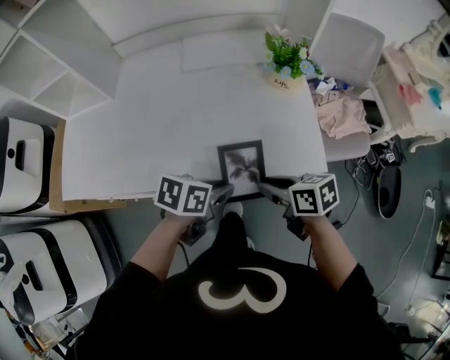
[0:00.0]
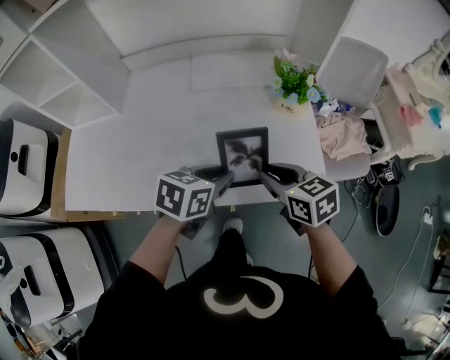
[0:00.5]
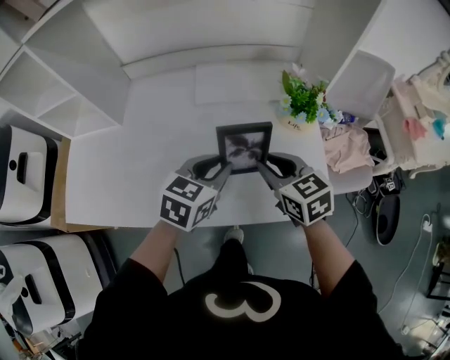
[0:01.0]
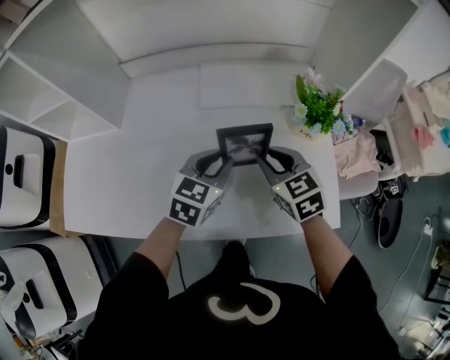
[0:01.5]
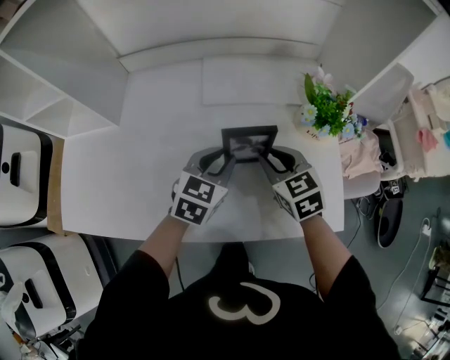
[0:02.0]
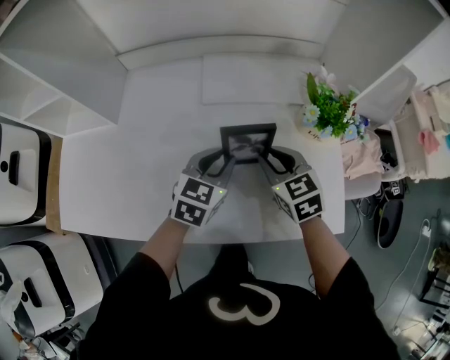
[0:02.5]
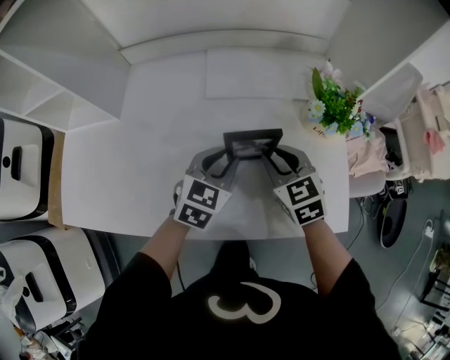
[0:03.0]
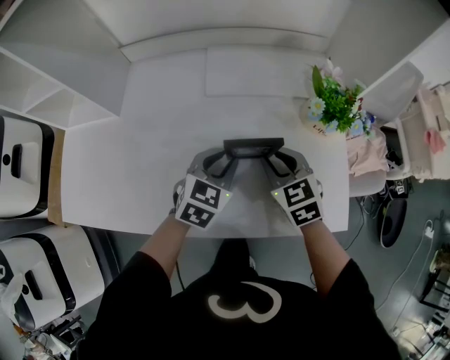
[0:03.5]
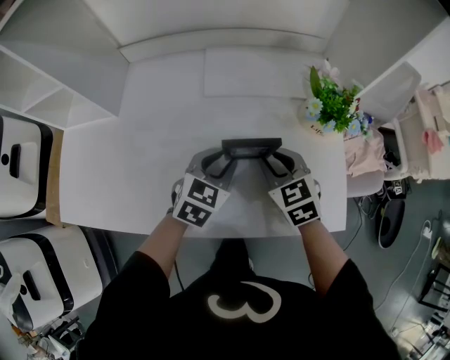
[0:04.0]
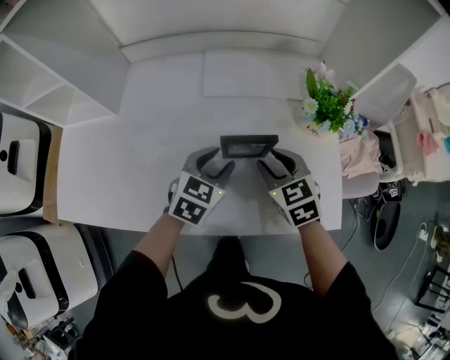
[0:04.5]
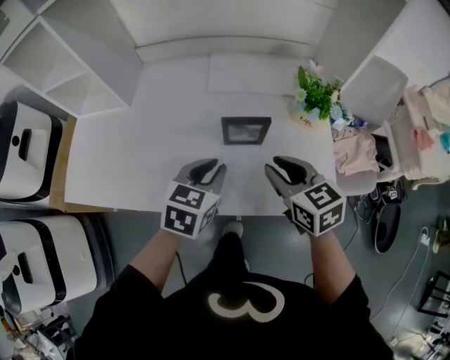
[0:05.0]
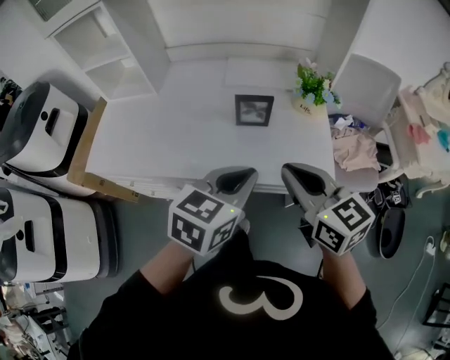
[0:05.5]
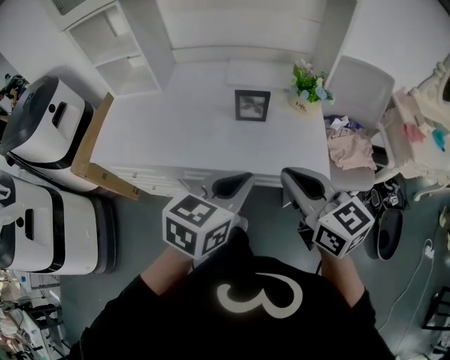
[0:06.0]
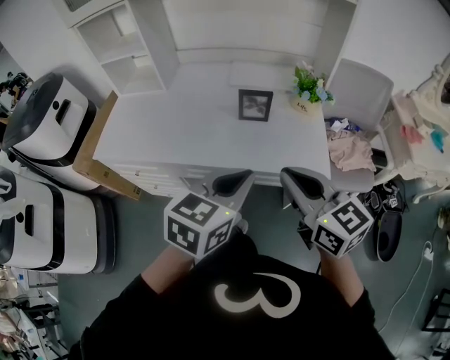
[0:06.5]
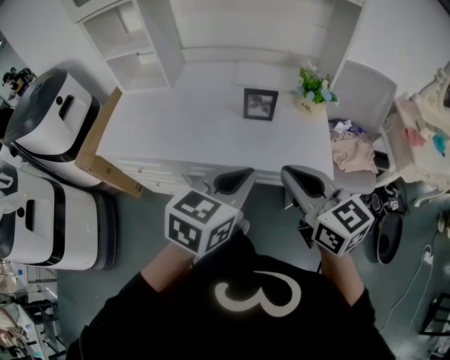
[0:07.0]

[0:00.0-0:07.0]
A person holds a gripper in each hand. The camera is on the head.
0:00.0 to 0:02.0: The left gripper reaches roughly 10 cm upward, then returns, and rotates about 50 degrees; the right gripper travels upward and back again, about 10 cm each way, and changes its angle by approximately 40 degrees.
0:02.0 to 0:03.5: The grippers make only small movements.
0:03.5 to 0:05.0: The two grippers go approximately 10 cm backward and upward.
0:05.0 to 0:07.0: The grippers both shift backward and upward by roughly 30 cm. The right gripper changes its angle by about 20 degrees, and closes its fingers.

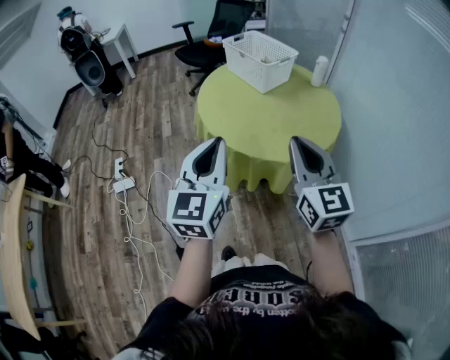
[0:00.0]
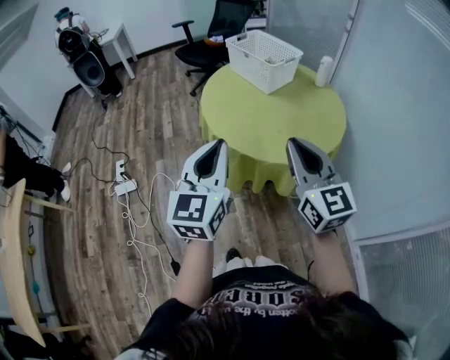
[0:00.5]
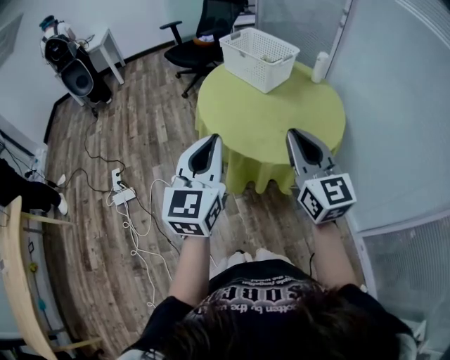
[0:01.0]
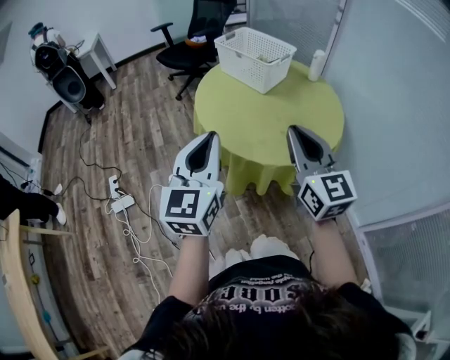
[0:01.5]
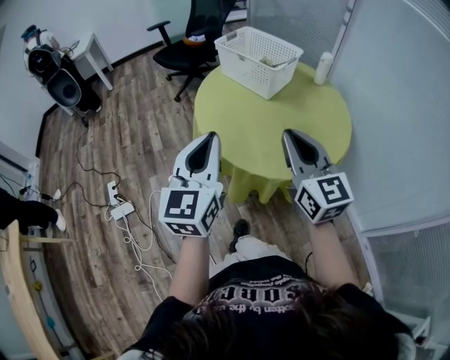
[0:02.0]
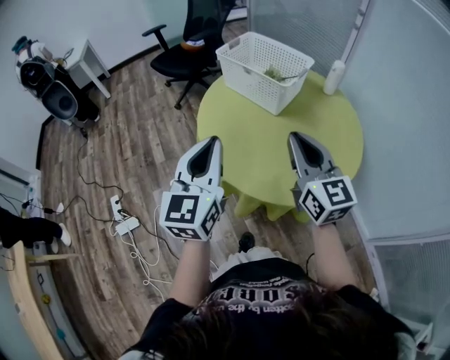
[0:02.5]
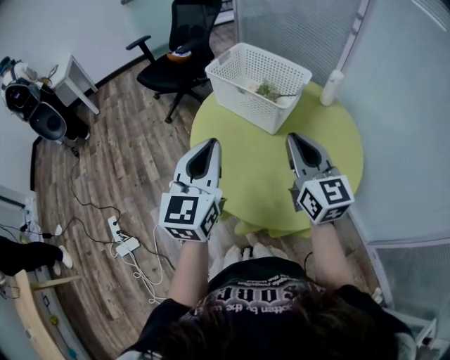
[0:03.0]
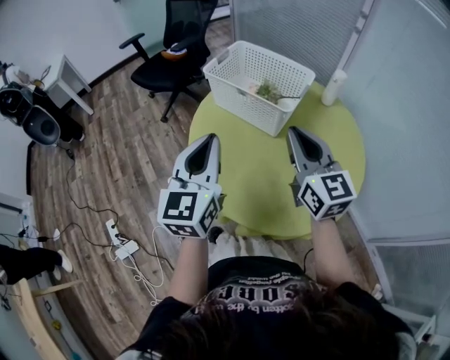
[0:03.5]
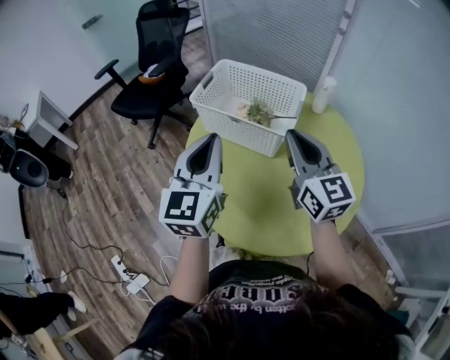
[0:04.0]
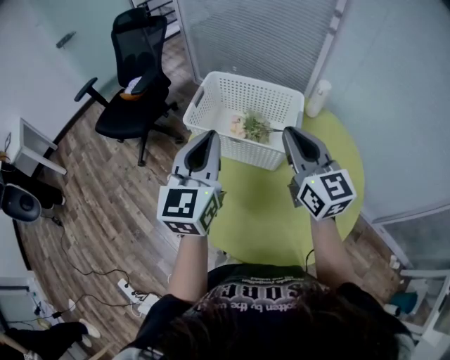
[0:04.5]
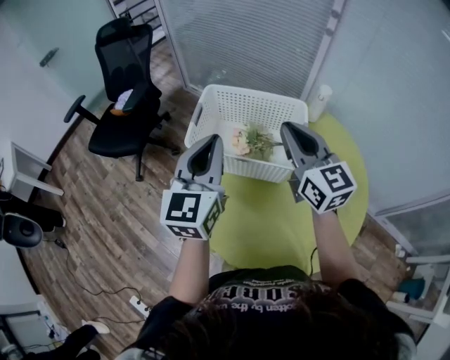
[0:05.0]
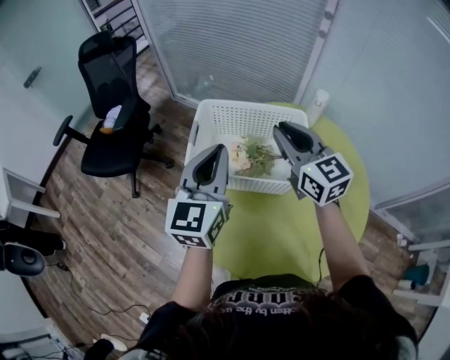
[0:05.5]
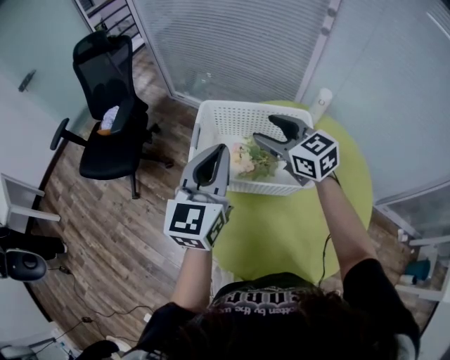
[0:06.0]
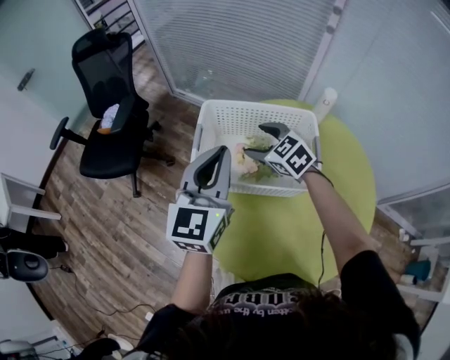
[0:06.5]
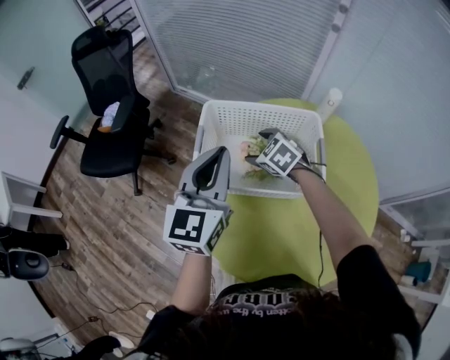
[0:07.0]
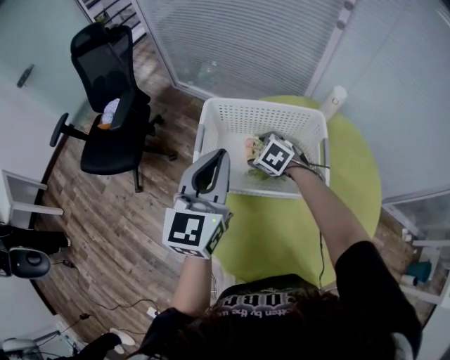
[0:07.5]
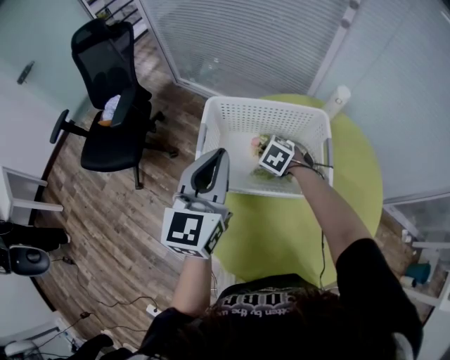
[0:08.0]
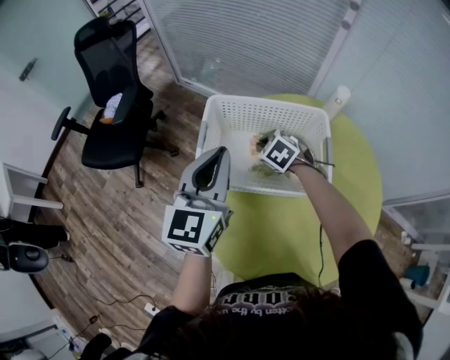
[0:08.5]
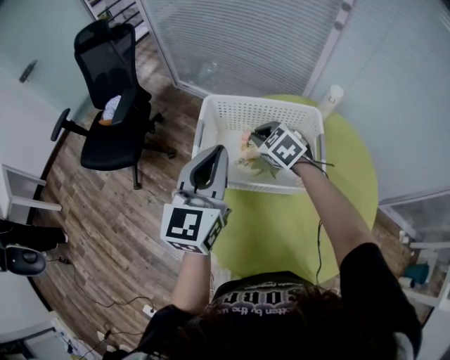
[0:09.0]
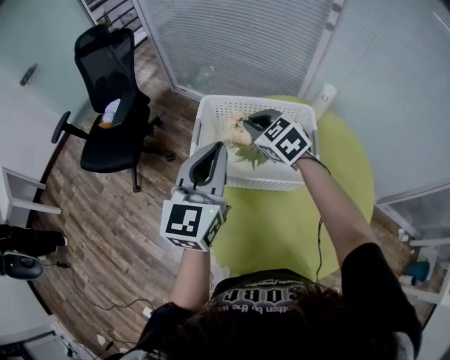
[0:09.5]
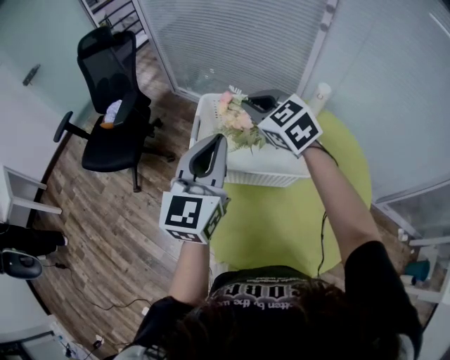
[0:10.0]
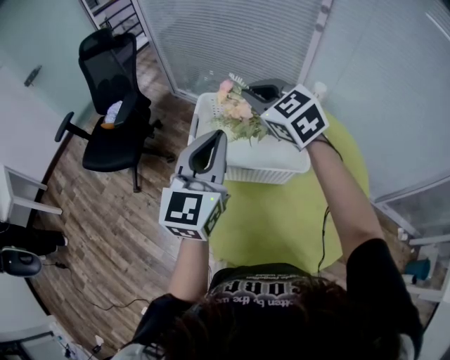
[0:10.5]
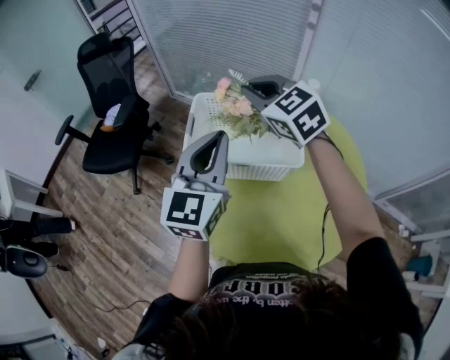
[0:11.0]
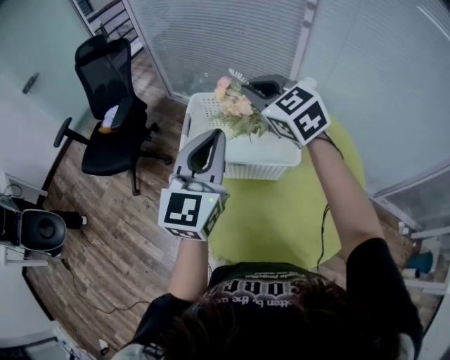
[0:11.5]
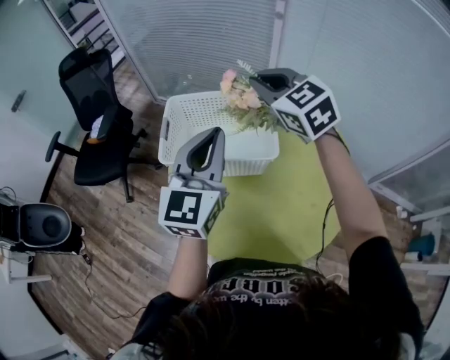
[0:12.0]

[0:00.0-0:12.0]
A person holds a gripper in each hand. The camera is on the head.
0:00.0 to 0:02.0: Both grippers travel together forward and to the left, some 15 cm.
0:02.0 to 0:04.0: Both grippers travel together forward, approximately 30 cm.
0:04.0 to 0:06.0: Both grippers move forward, about 20 cm. The right gripper opens up; the left gripper changes its angle by some 20 degrees.
0:06.0 to 0:08.0: The right gripper is displaced downward by some 25 cm, tips its fingers downward by approximately 50 degrees, and closes up.
0:08.0 to 0:10.0: The right gripper moves upward, roughly 30 cm, and angles its fingers upward, by roughly 40 degrees; the left gripper shifts by about 5 cm.
0:10.0 to 0:12.0: The left gripper is displaced to the right by some 10 cm. The right gripper moves to the right, upward and backward, about 15 cm.

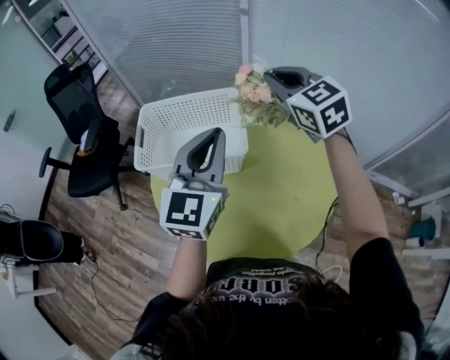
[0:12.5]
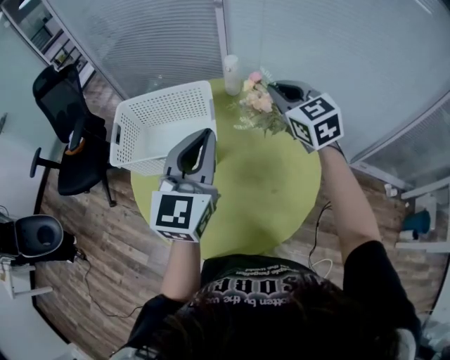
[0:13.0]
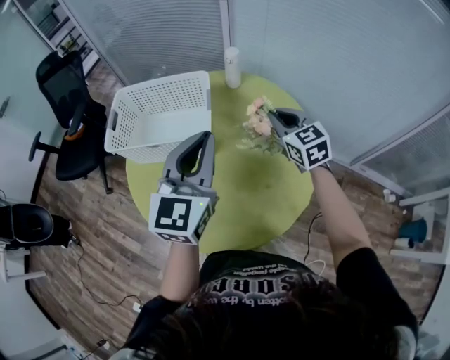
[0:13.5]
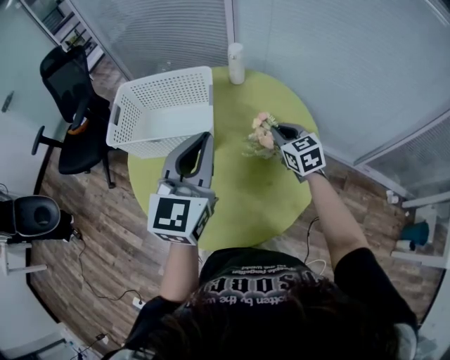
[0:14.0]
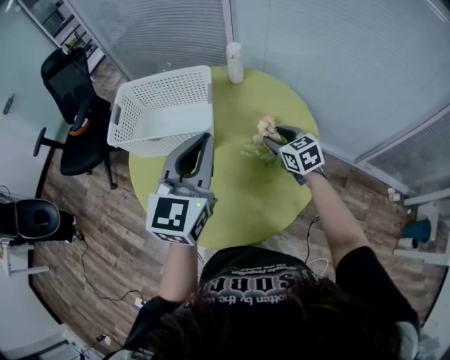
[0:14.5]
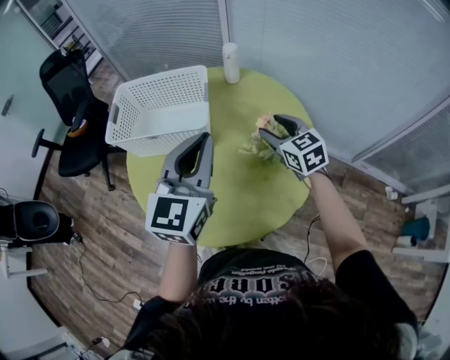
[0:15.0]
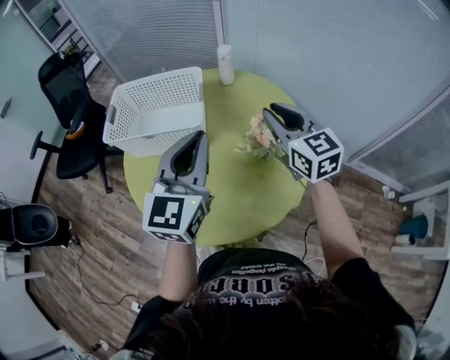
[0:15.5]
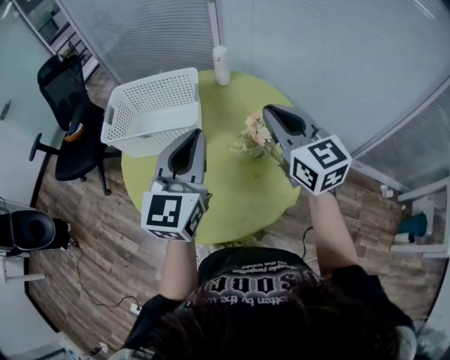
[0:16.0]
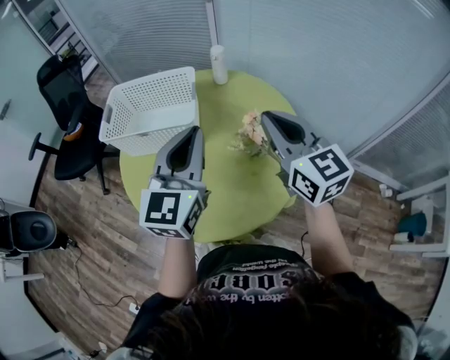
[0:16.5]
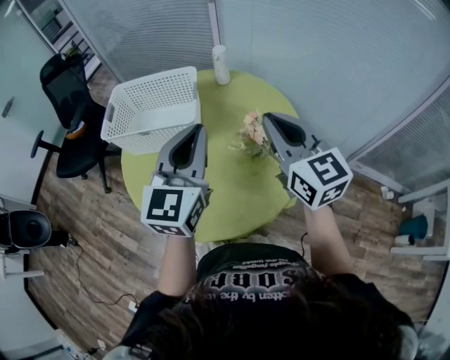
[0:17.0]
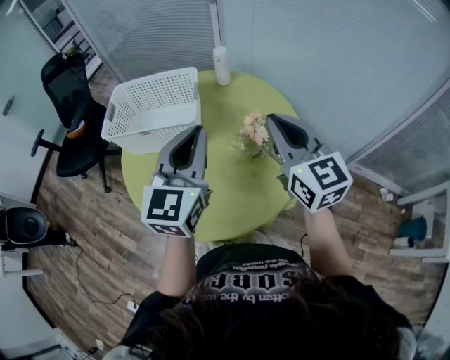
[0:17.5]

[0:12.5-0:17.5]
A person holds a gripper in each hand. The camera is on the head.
0:12.5 to 0:15.0: The left gripper moves backward and to the right, about 10 cm; the right gripper heads downward, backward and to the right, covering roughly 25 cm, and opens its fingers.
0:15.0 to 0:17.5: The right gripper heads upward and backward, covering roughly 20 cm, turns by approximately 20 degrees, and closes up.

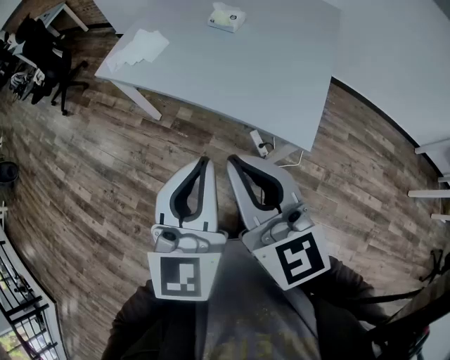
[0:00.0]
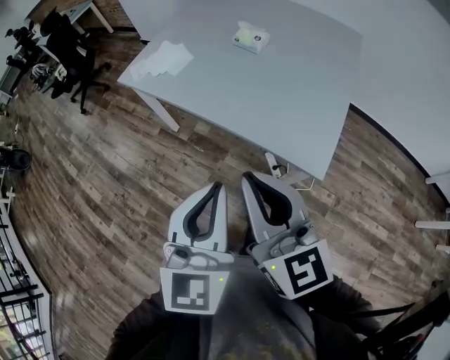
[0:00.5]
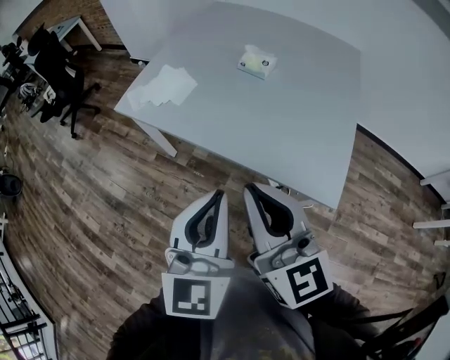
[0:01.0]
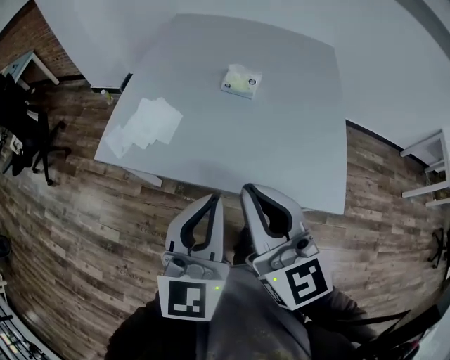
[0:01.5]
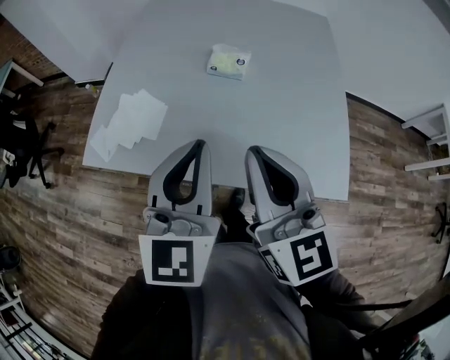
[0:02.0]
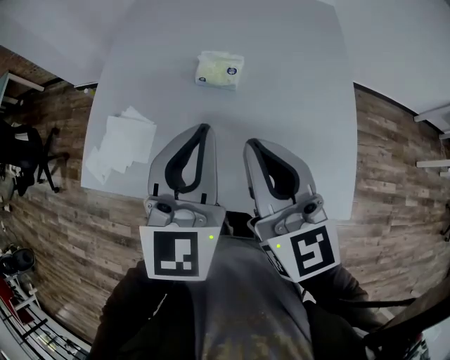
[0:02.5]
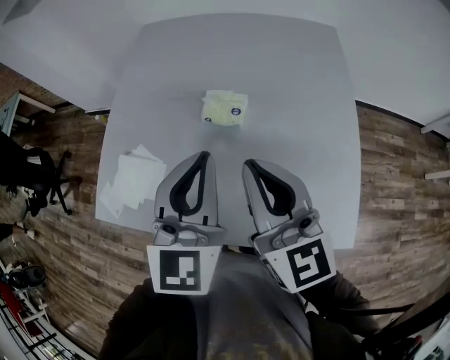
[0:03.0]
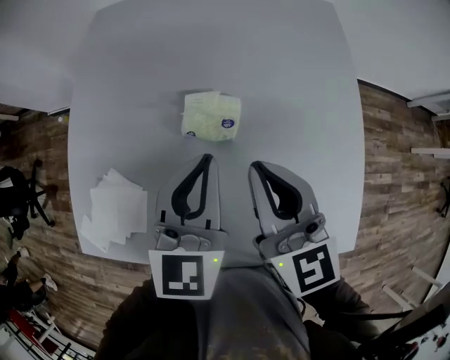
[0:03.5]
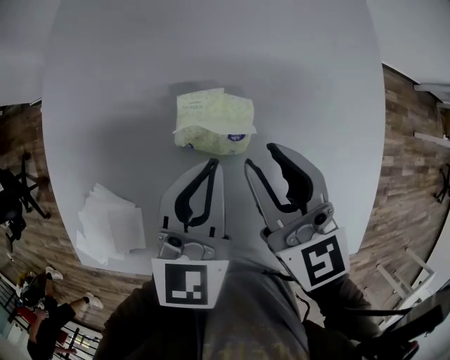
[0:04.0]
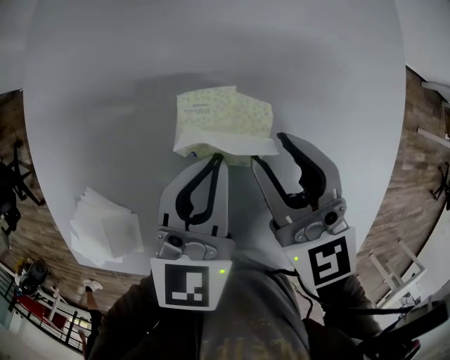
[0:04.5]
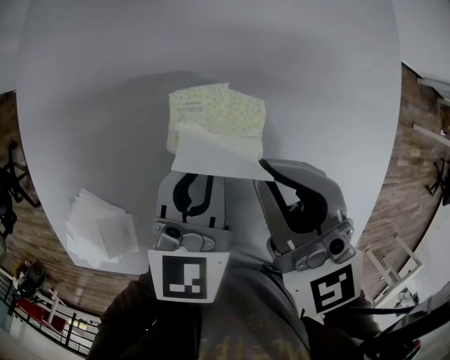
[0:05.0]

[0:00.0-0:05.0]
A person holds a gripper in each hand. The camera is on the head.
0:00.0 to 0:02.5: The pair of grippers is taken forward, about 40 cm. The right gripper swivels approximately 20 degrees. Meanwhile the left gripper rotates about 20 degrees.
0:02.5 to 0:05.0: Both grippers move forward and downward, some 30 cm. The right gripper opens, then closes again; the left gripper changes its angle by approximately 30 degrees.
